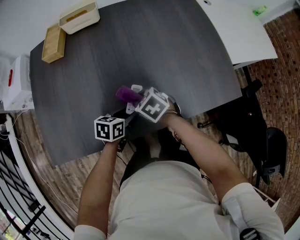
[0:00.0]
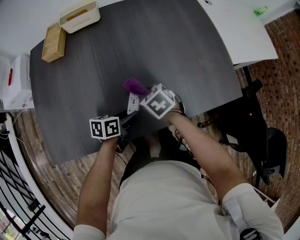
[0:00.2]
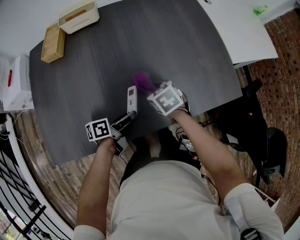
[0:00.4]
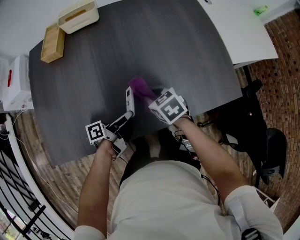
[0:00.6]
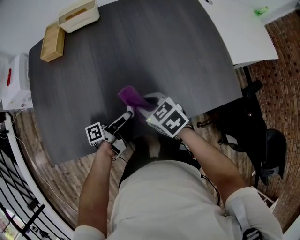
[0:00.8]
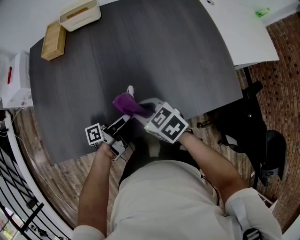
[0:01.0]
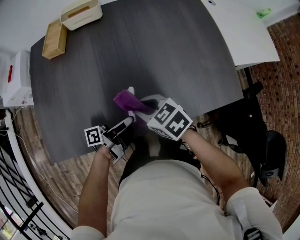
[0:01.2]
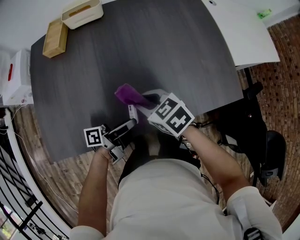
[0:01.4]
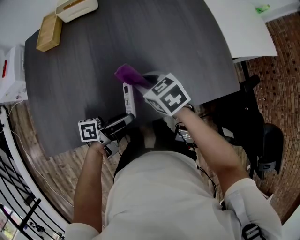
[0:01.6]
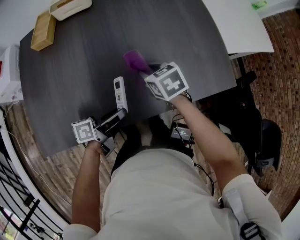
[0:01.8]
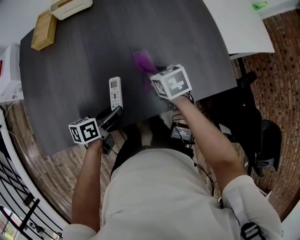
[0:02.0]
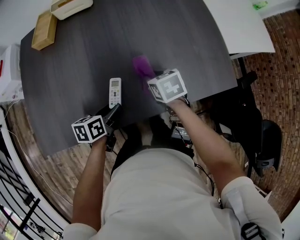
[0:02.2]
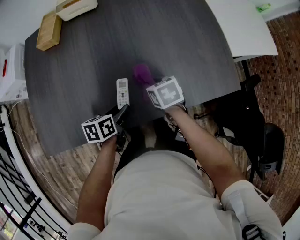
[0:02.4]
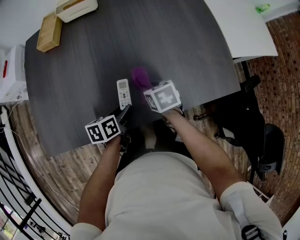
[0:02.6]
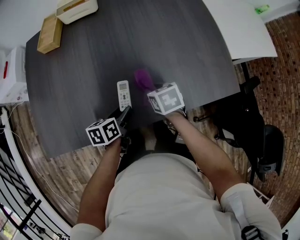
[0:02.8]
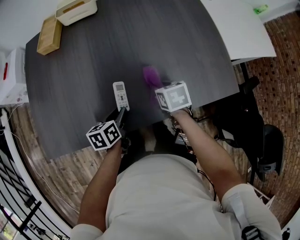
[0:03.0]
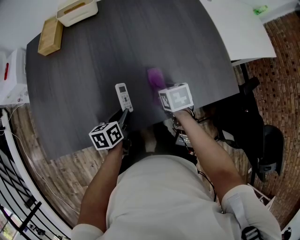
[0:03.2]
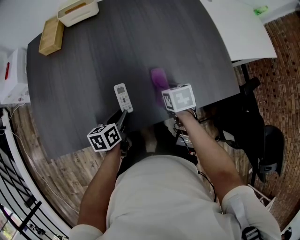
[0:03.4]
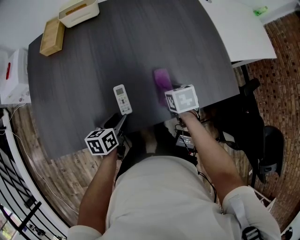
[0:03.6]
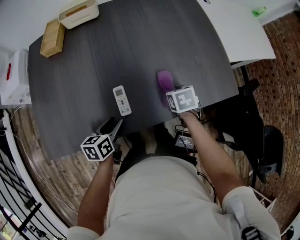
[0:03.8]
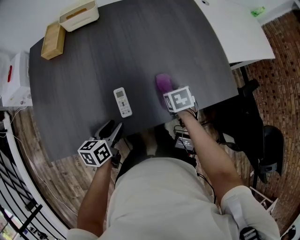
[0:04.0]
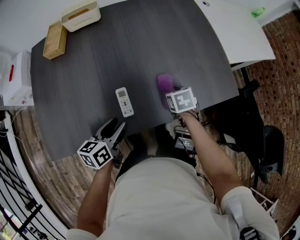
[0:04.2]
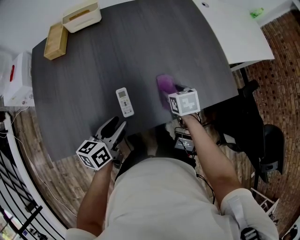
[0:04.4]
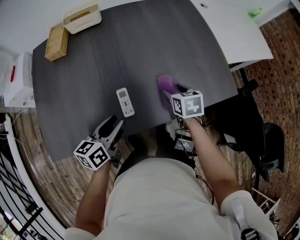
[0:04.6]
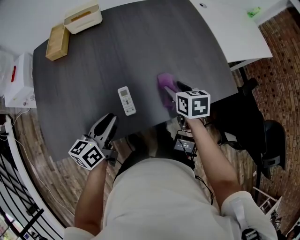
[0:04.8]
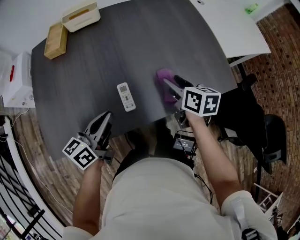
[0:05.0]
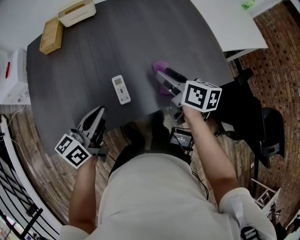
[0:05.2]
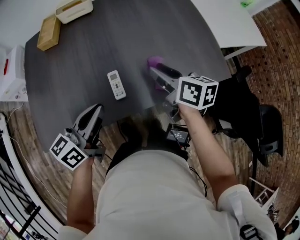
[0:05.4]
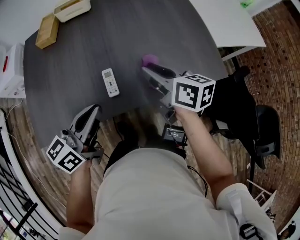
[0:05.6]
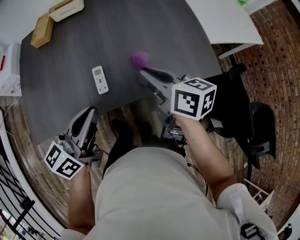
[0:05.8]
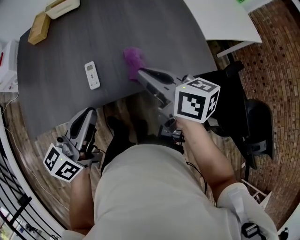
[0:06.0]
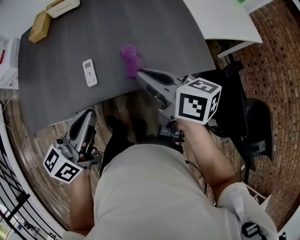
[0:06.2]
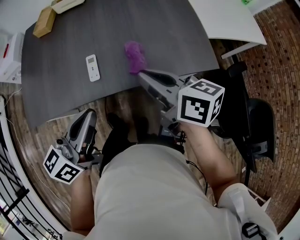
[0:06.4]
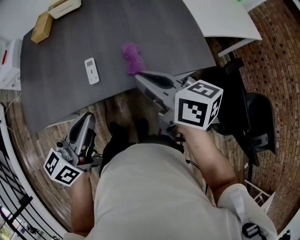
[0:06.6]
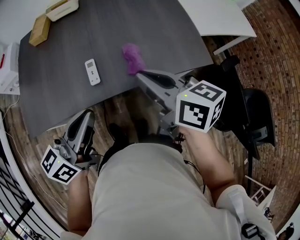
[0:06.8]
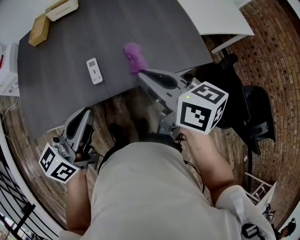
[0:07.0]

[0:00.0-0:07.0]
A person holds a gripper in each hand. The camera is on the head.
0:00.0 to 0:01.4: The grippers both shift upward by approximately 10 cm. The left gripper points its fingers about 50 degrees further upward.
0:01.4 to 0:02.8: The left gripper goes roughly 5 cm downward, and points its fingers about 40 degrees further downward. The right gripper is displaced downward and to the right by about 10 cm, and swivels approximately 30 degrees.
0:02.8 to 0:04.2: The left gripper heads upward, covering about 10 cm. The right gripper shifts about 10 cm to the right.
0:04.2 to 0:05.6: Both grippers travel together upward, about 15 cm. The left gripper rotates roughly 20 degrees, and closes its fingers; the right gripper tips its fingers upward by some 40 degrees.
0:05.6 to 0:07.0: The two grippers go approximately 10 cm backward and upward.

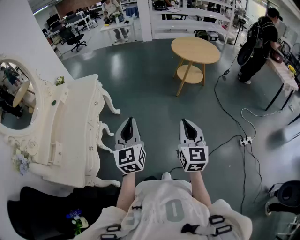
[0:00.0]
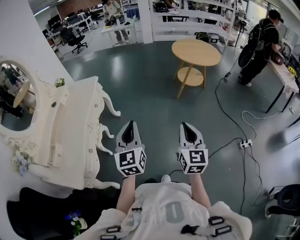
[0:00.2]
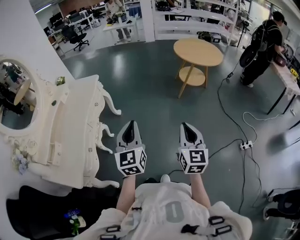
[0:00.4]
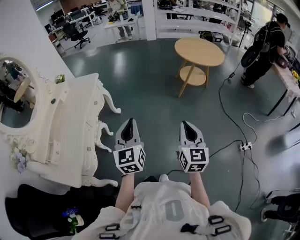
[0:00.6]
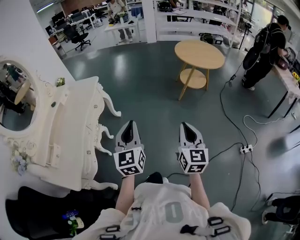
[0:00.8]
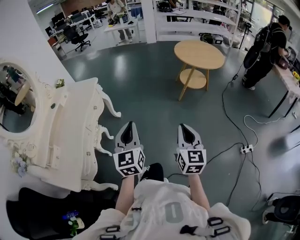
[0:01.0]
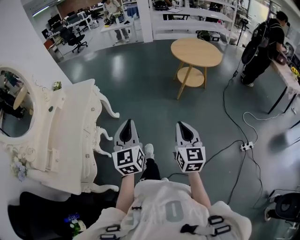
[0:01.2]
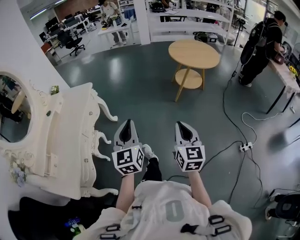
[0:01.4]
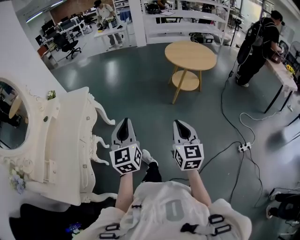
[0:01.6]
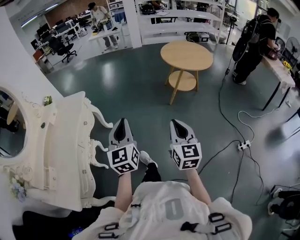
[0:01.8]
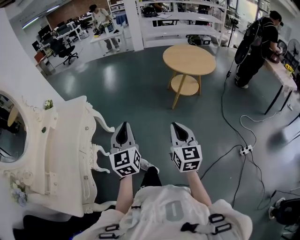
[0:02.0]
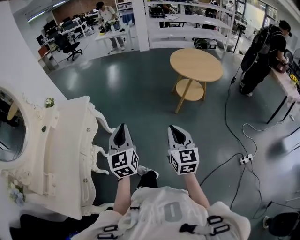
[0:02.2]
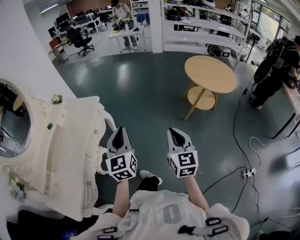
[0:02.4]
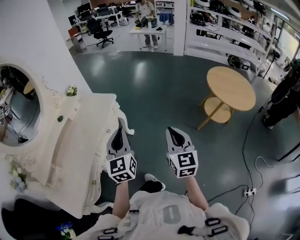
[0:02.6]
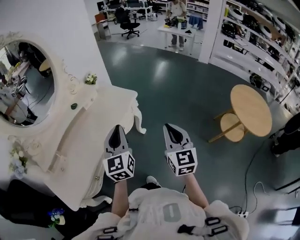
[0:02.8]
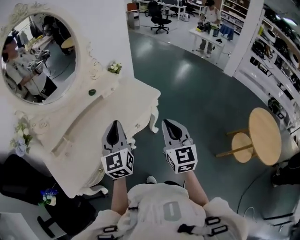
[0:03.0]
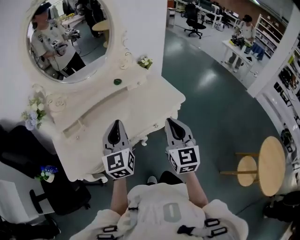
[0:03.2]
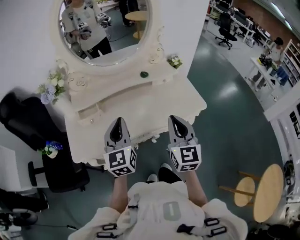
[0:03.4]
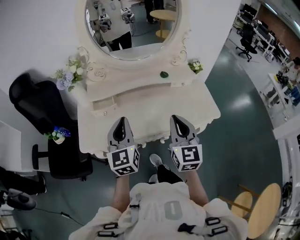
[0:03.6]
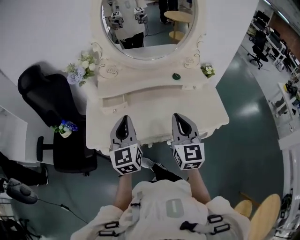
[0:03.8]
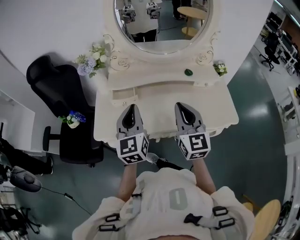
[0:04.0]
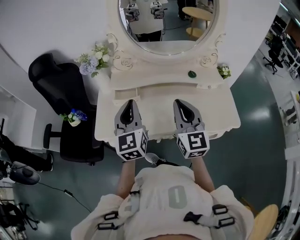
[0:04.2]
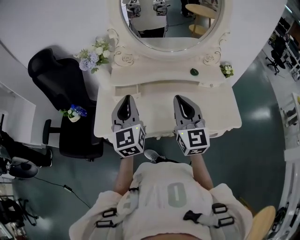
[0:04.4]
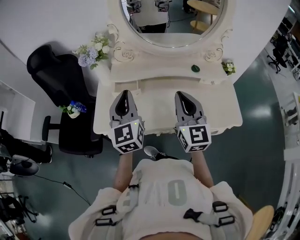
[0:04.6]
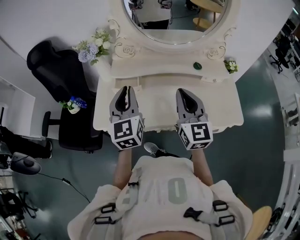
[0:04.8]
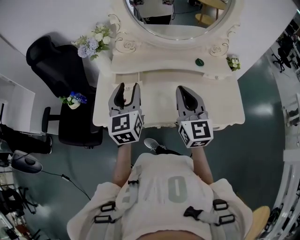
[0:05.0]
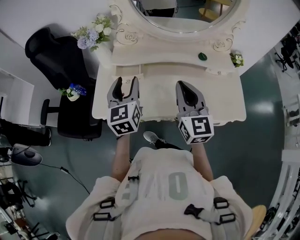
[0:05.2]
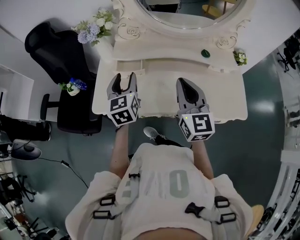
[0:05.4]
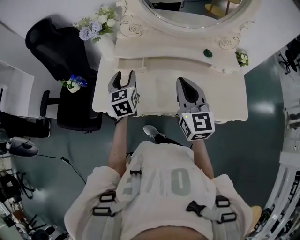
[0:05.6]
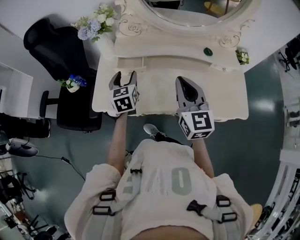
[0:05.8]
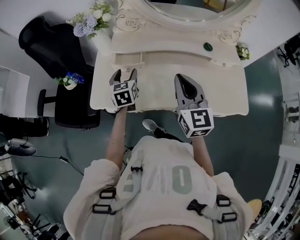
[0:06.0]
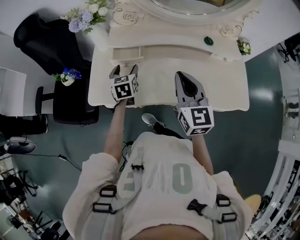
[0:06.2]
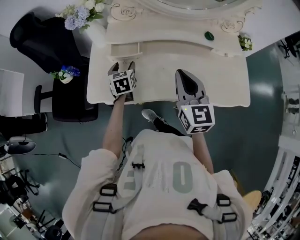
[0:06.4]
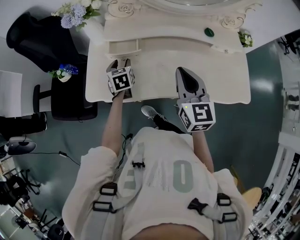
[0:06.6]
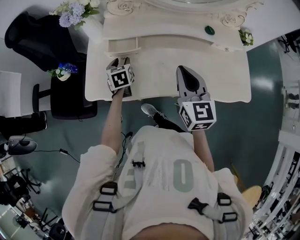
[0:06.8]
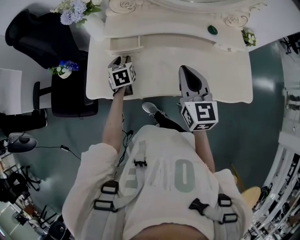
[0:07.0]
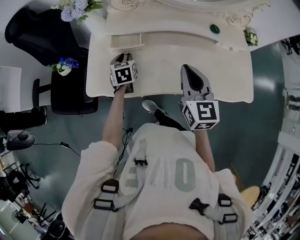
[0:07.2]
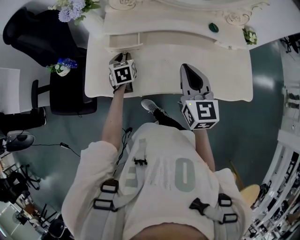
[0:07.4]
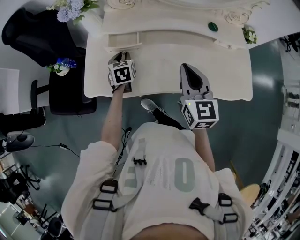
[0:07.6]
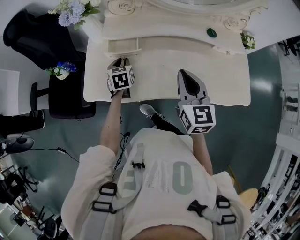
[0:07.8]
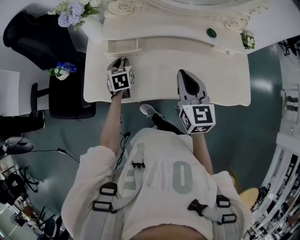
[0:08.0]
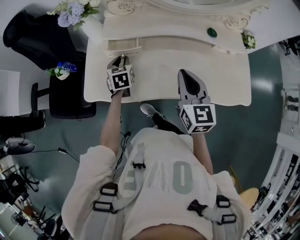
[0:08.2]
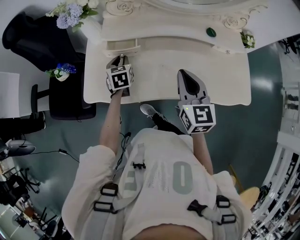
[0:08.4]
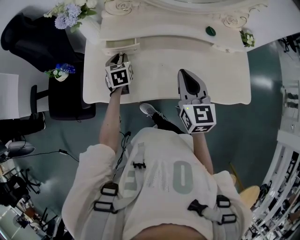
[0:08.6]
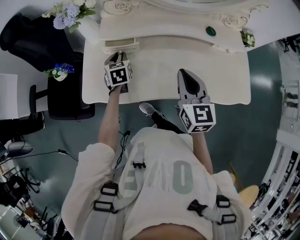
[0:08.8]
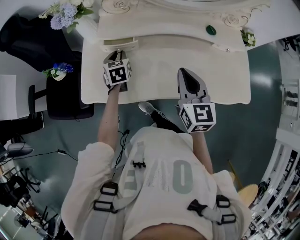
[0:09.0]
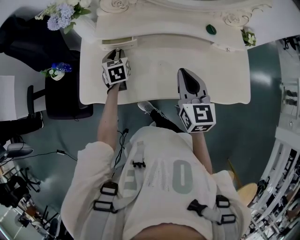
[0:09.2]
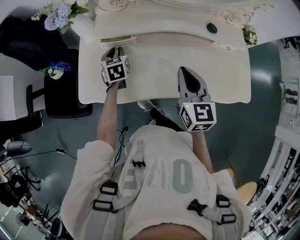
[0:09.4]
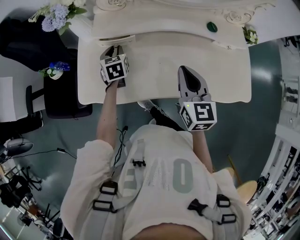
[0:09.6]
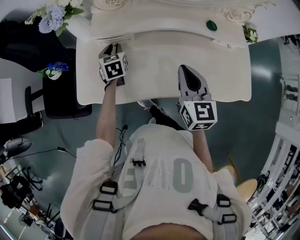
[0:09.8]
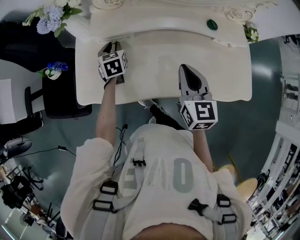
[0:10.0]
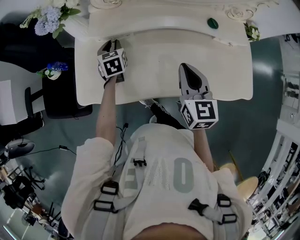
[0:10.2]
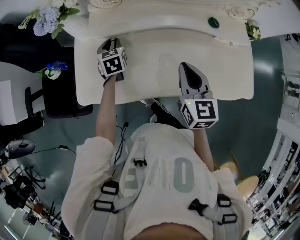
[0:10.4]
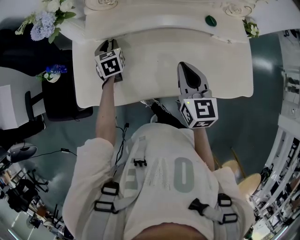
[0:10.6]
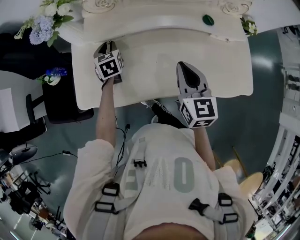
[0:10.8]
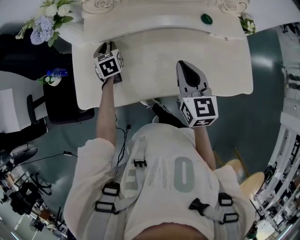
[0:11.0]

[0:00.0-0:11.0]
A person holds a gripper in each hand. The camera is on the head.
0:00.0 to 0:01.6: Both grippers move forward, roughly 10 cm.
0:01.6 to 0:03.2: The two grippers travel together, approximately 50 cm. The left gripper swivels approximately 60 degrees. Meanwhile the right gripper turns by some 60 degrees.
0:03.2 to 0:04.8: The left gripper ends up roughly 20 cm from where it was, and rotates some 30 degrees; the right gripper changes place by some 25 cm, and changes its angle by roughly 40 degrees.
0:04.8 to 0:06.2: The right gripper heads downward, covering about 5 cm. The left gripper shifts some 25 cm downward and forward, tips its fingers downward by approximately 30 degrees, and opens.
0:06.2 to 0:07.8: The left gripper shifts by about 5 cm, and closes up.
0:07.8 to 0:09.4: The left gripper is displaced forward by approximately 5 cm.
0:09.4 to 0:11.0: The grippers make only small movements.

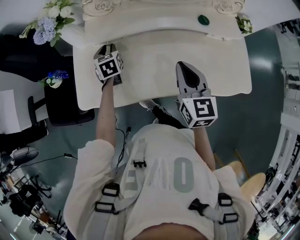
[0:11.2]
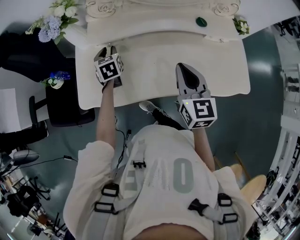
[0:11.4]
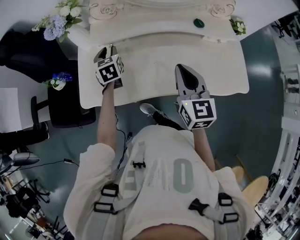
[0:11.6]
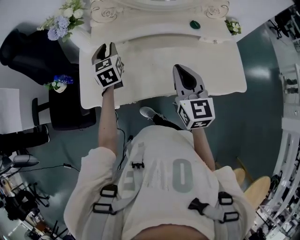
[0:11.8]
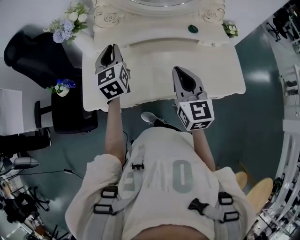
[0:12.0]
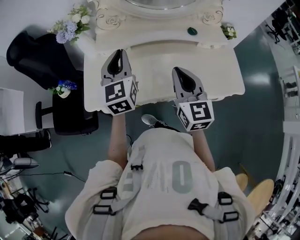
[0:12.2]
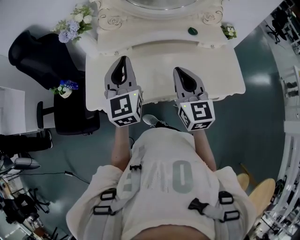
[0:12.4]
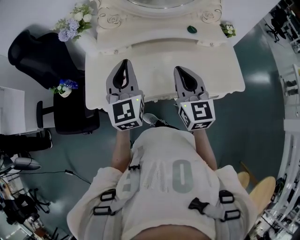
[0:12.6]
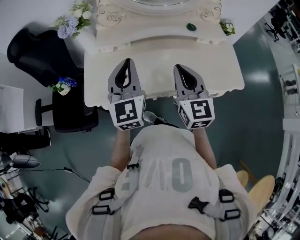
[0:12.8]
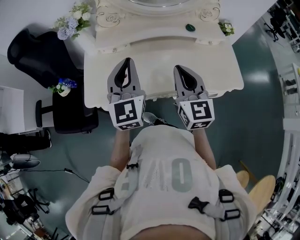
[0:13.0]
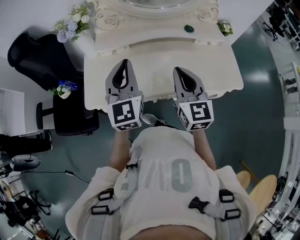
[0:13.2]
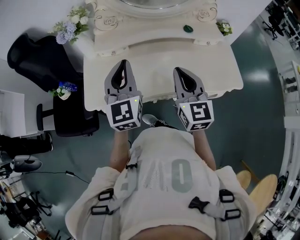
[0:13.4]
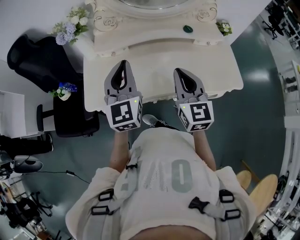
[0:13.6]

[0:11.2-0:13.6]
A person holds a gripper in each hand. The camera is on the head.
0:11.2 to 0:12.4: The right gripper heads upward and backward, covering approximately 10 cm. Meanwhile the left gripper travels upward and backward by roughly 30 cm, and tilts its fingers about 40 degrees upward.
0:12.4 to 0:13.6: There are only small adjustments of the grippers.

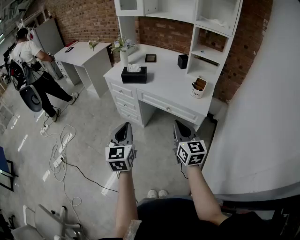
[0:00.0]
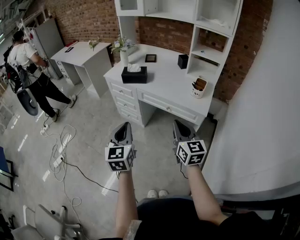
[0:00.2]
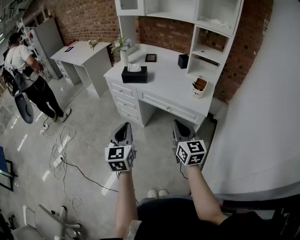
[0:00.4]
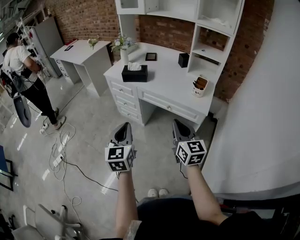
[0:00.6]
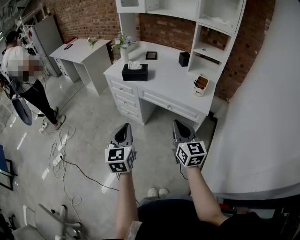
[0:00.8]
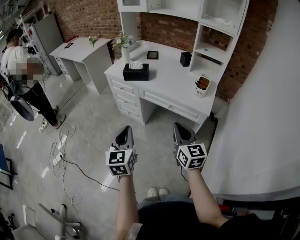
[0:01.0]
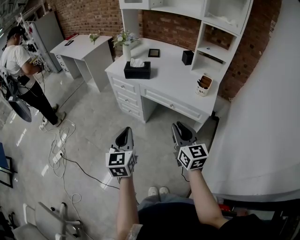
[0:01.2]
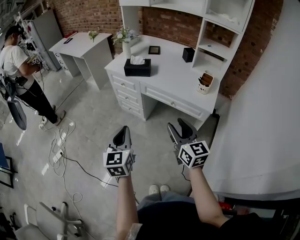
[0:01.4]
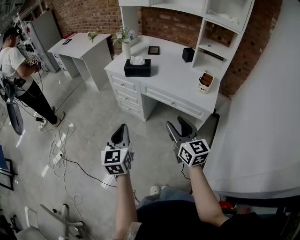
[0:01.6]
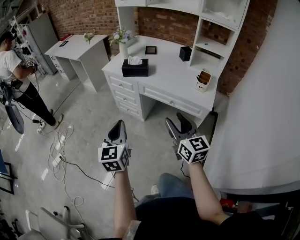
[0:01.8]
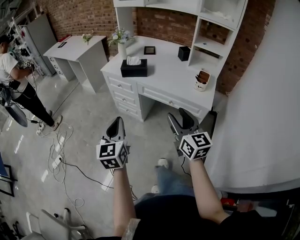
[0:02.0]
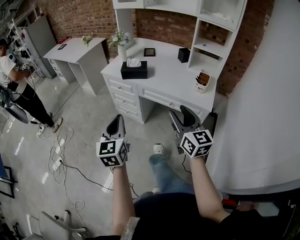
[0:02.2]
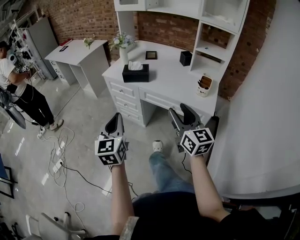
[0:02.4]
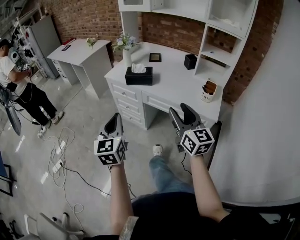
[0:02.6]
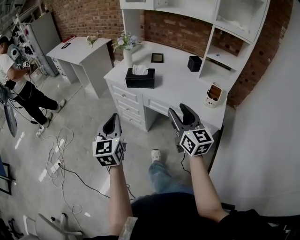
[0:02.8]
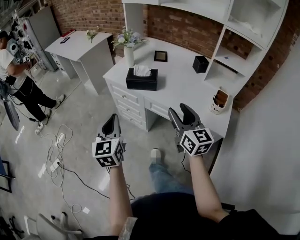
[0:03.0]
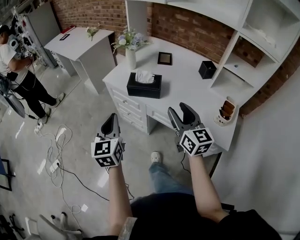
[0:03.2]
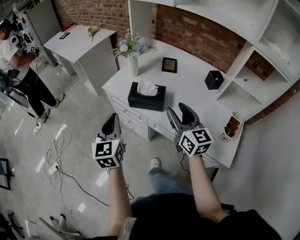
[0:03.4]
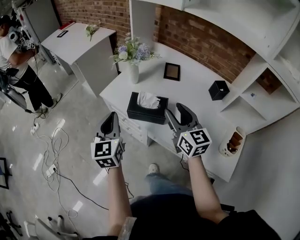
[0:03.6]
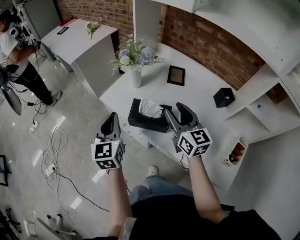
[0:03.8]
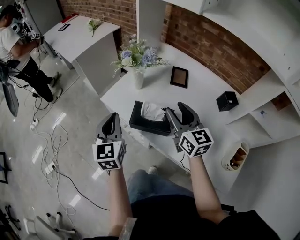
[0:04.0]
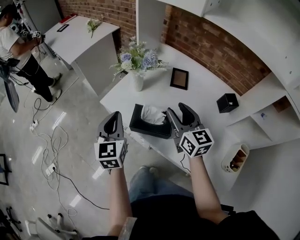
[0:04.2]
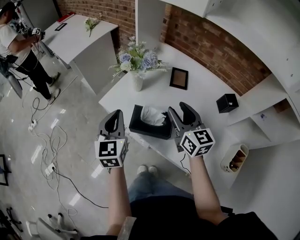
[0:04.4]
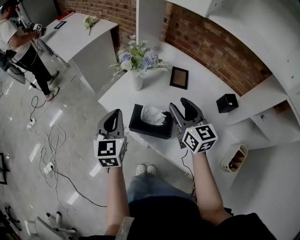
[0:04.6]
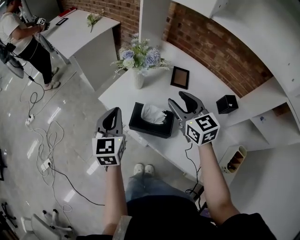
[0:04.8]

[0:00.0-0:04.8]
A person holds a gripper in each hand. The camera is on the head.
0:00.0 to 0:01.6: Both grippers travel together to the left, approximately 5 cm. The right gripper opens up.
0:01.6 to 0:03.2: Both grippers travel together forward, some 30 cm.
0:03.2 to 0:04.8: The grippers both shift forward by some 30 cm. The right gripper swivels roughly 20 degrees.
